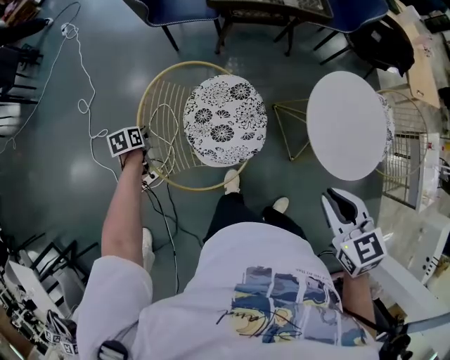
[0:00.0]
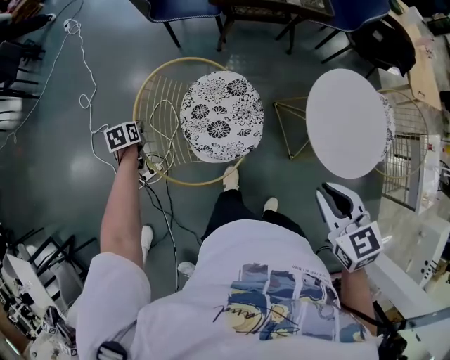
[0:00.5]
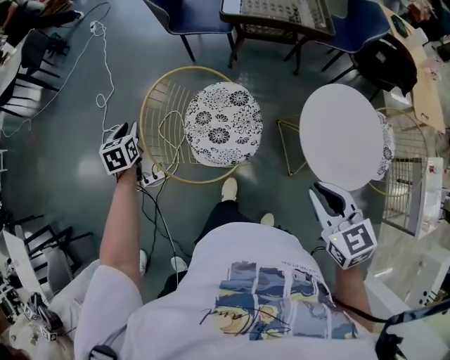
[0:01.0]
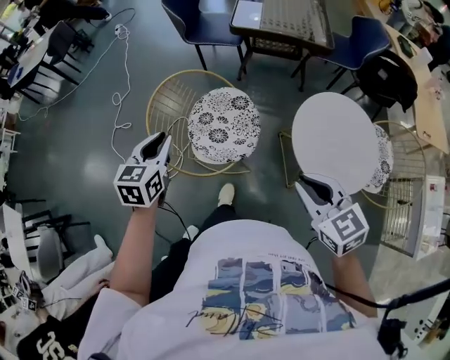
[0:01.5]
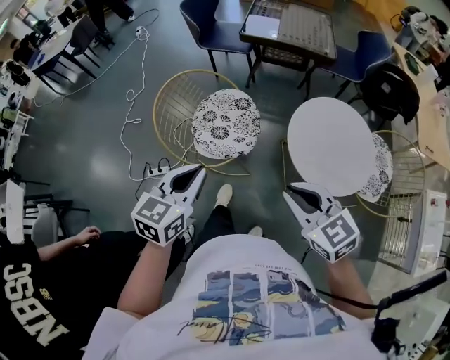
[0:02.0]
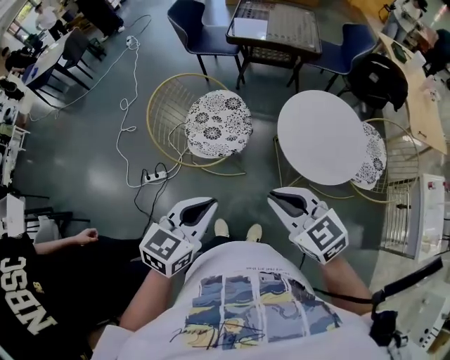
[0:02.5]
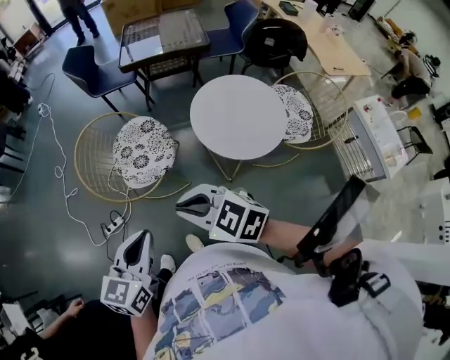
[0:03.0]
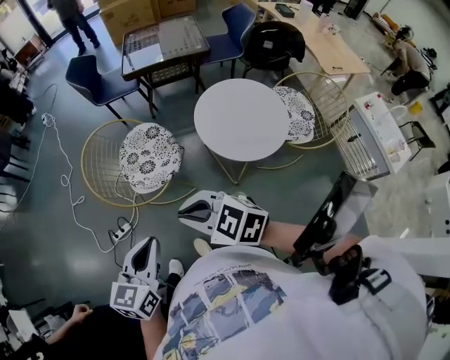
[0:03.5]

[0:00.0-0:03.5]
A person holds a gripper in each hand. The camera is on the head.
0:00.0 to 0:02.0: The left gripper travels backward, upward and to the right by about 60 cm, tips its fingers upward by roughly 40 degrees, and opens, then closes once more, while the right gripper shifts about 20 cm backward, and turns by approximately 40 degrees.
0:02.0 to 0:03.5: The right gripper goes approximately 10 cm to the left and backward, while the left gripper goes roughly 10 cm backward.

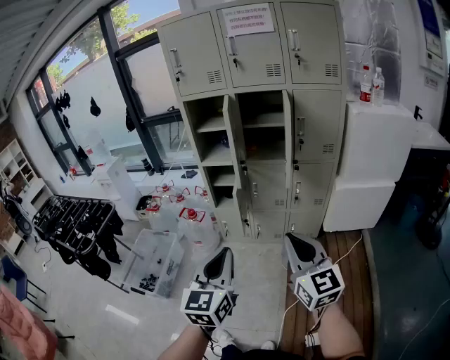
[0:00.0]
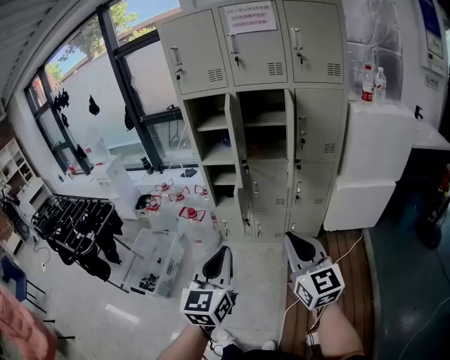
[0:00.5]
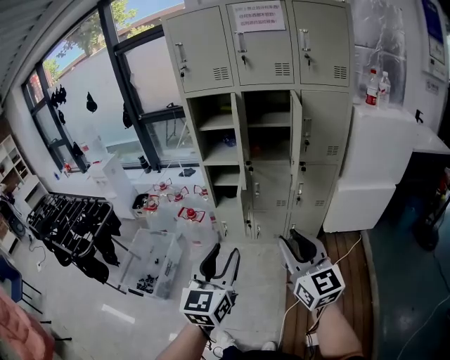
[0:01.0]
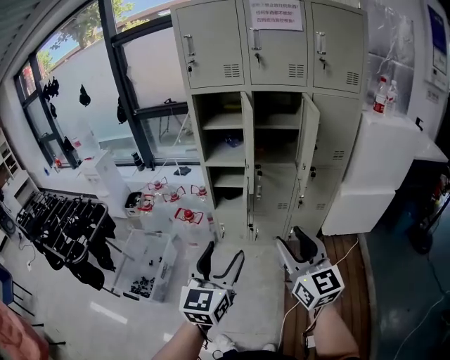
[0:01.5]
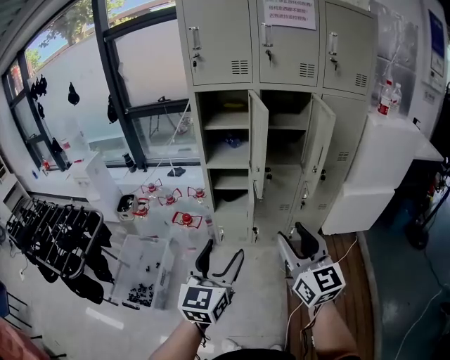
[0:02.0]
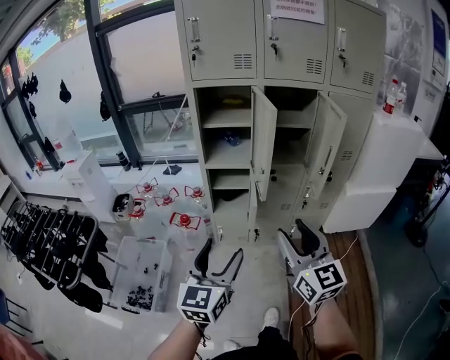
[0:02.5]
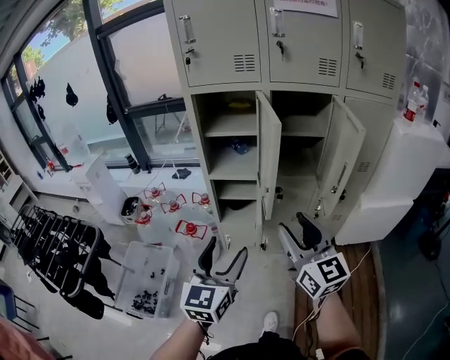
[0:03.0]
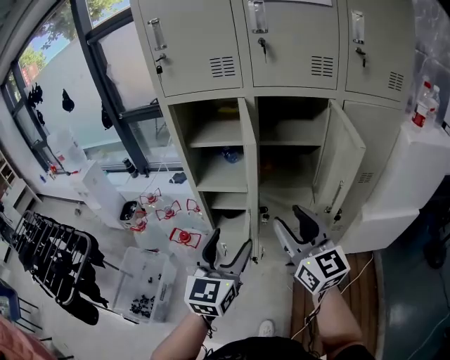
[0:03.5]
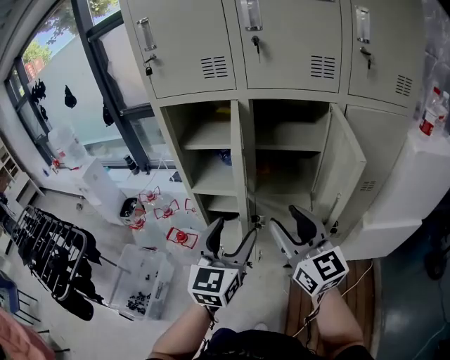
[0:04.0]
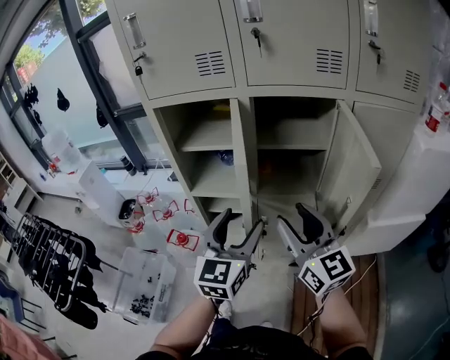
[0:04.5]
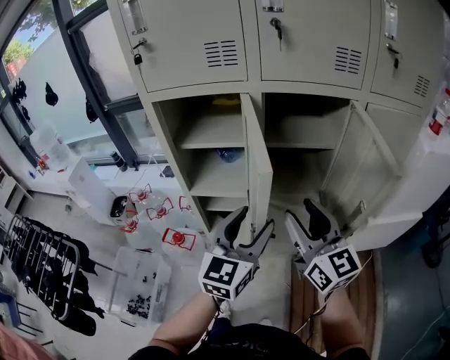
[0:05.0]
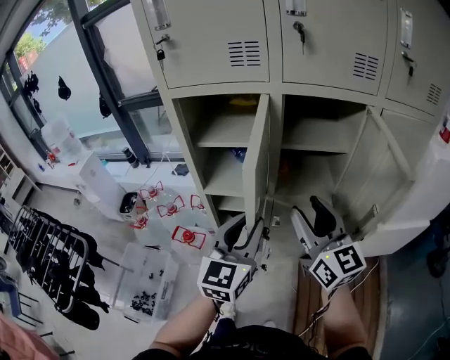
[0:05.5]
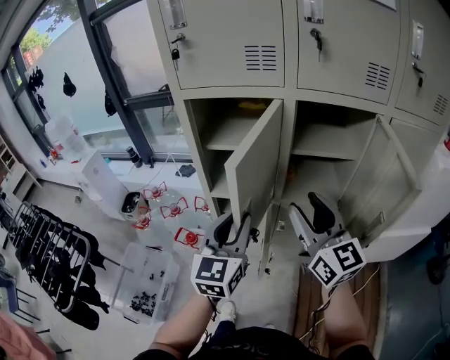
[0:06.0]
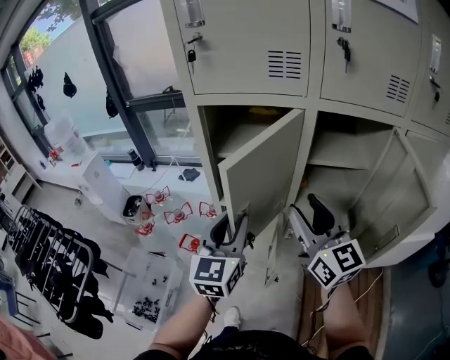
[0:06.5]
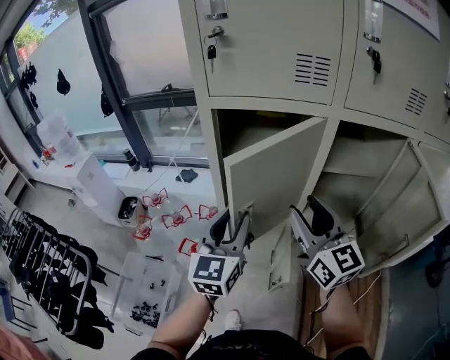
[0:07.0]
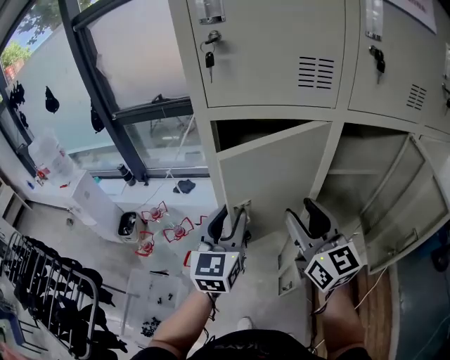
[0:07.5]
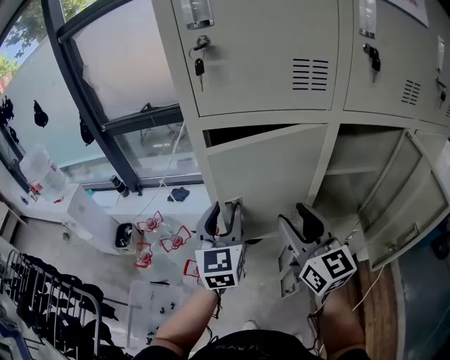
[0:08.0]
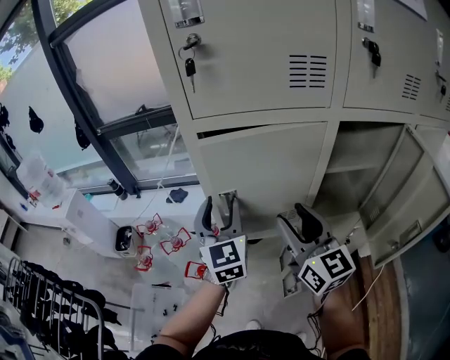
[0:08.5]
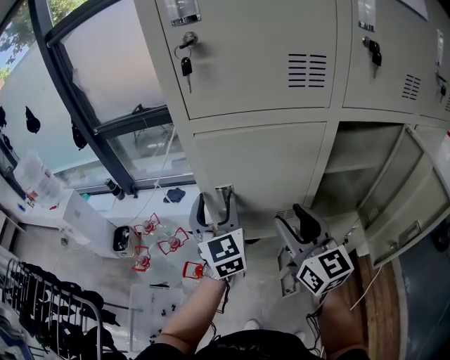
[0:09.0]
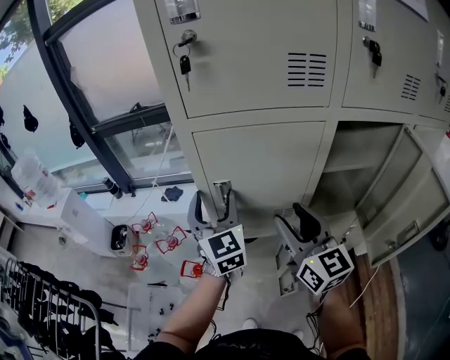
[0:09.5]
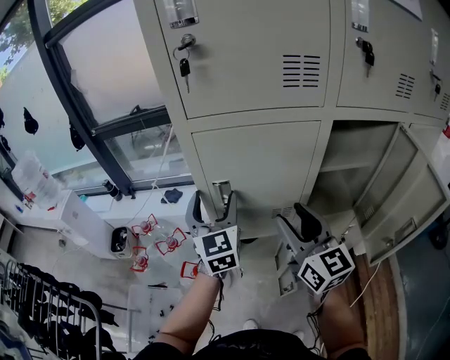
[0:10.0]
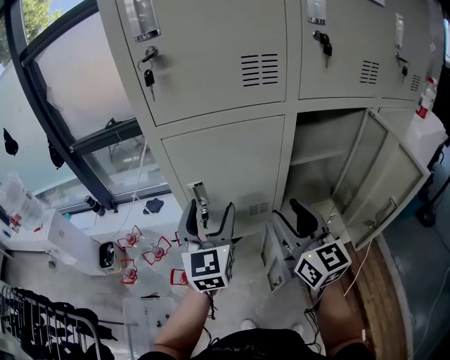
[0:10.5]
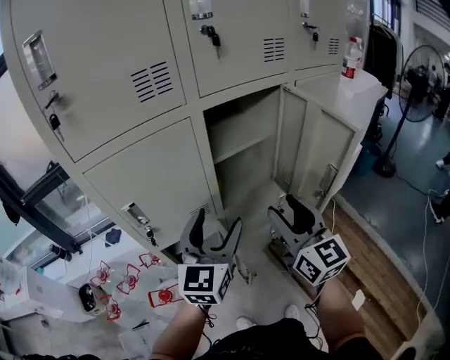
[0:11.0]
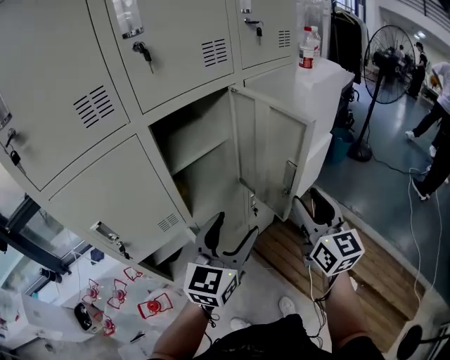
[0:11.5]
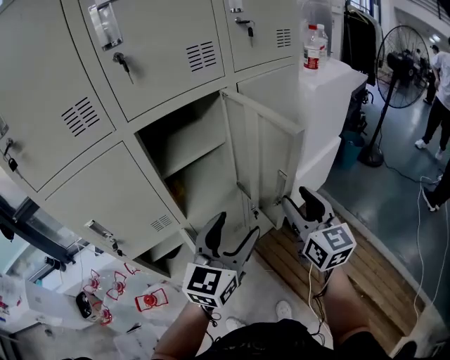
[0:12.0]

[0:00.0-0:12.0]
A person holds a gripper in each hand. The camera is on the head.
0:00.0 to 0:02.0: Both grippers move to the left and forward, about 20 cm. The left gripper opens its fingers, while the right gripper opens its fingers.
0:02.0 to 0:04.0: The right gripper shifts roughly 30 cm forward, while the left gripper is displaced forward and to the right by some 35 cm.
0:04.0 to 0:06.0: The right gripper travels forward and to the left by some 10 cm. The left gripper heads to the left and forward, covering approximately 15 cm, and closes up.
0:06.0 to 0:08.0: The right gripper shifts some 15 cm to the left and forward; the left gripper travels forward and to the left by about 20 cm.
0:08.0 to 0:10.0: The left gripper opens up.
0:10.0 to 0:12.0: The left gripper shifts by roughly 40 cm, and turns by roughly 60 degrees; the right gripper changes place by some 40 cm, and turns by roughly 40 degrees.

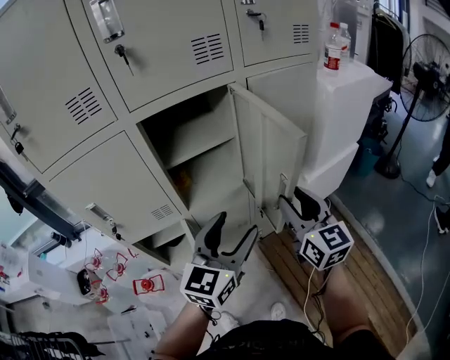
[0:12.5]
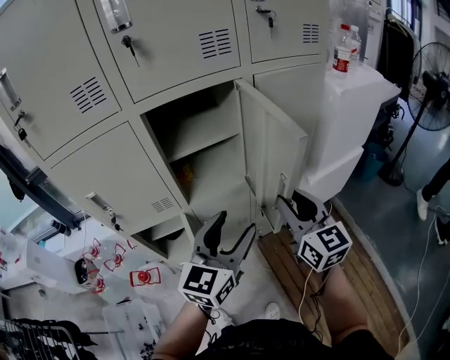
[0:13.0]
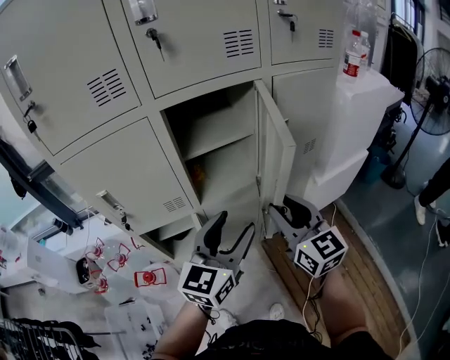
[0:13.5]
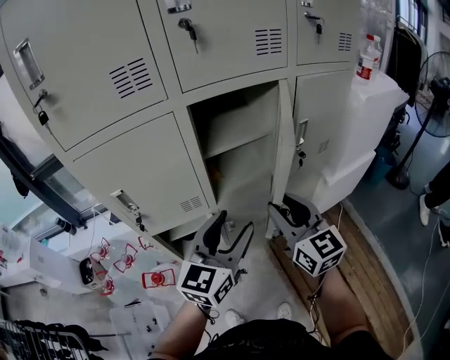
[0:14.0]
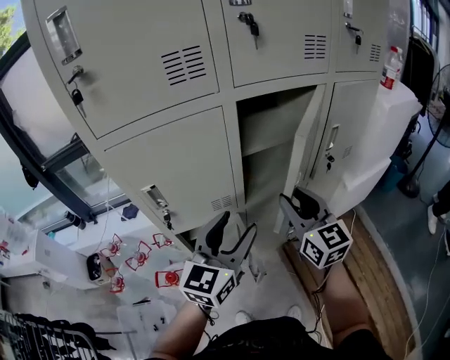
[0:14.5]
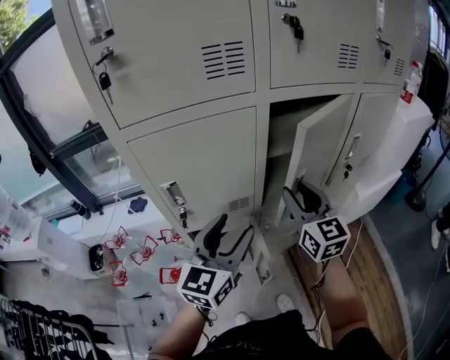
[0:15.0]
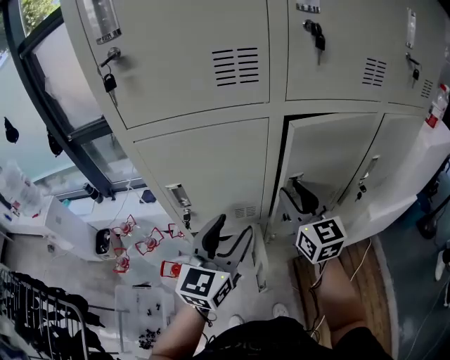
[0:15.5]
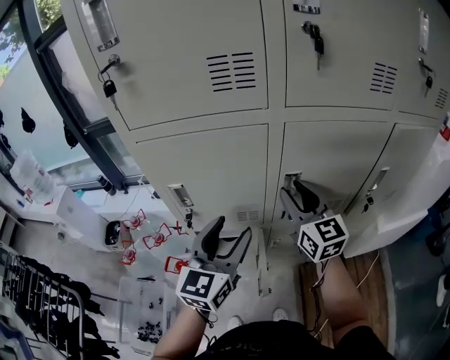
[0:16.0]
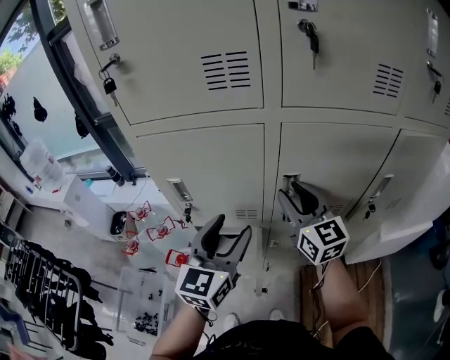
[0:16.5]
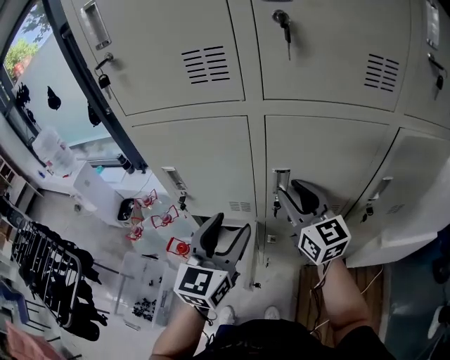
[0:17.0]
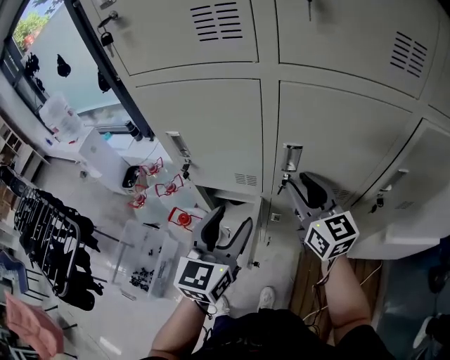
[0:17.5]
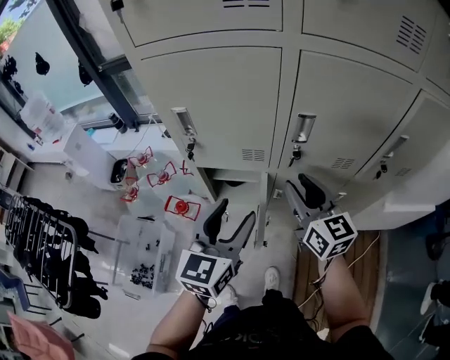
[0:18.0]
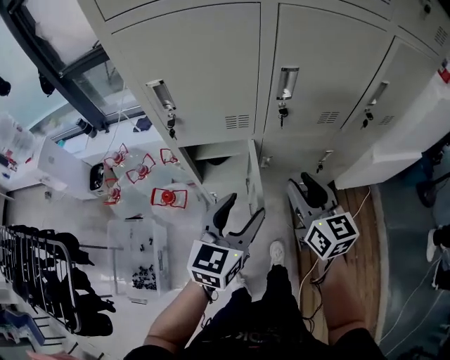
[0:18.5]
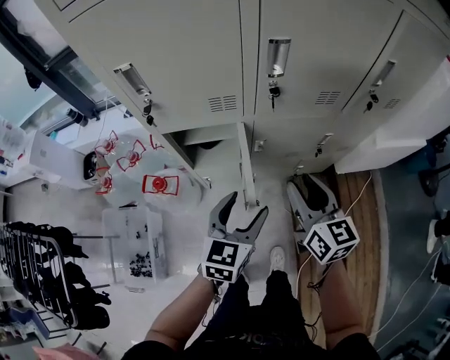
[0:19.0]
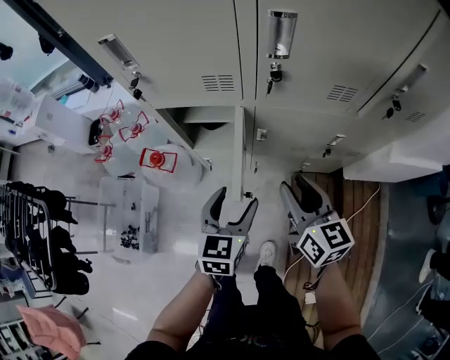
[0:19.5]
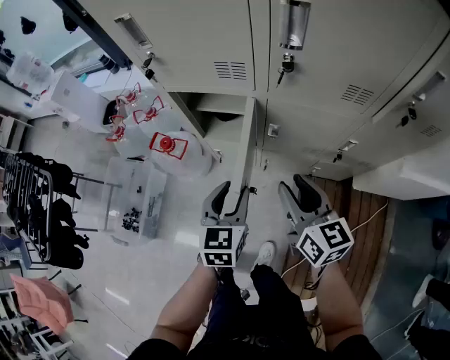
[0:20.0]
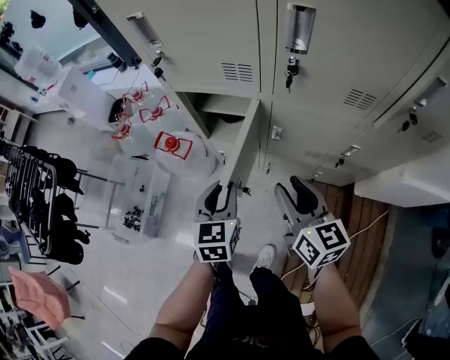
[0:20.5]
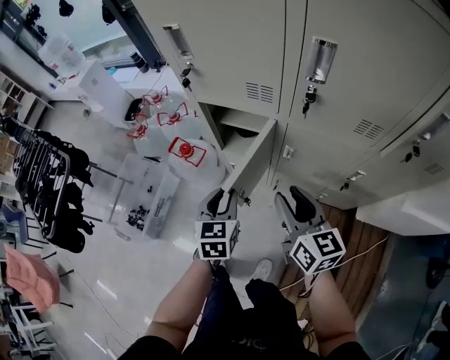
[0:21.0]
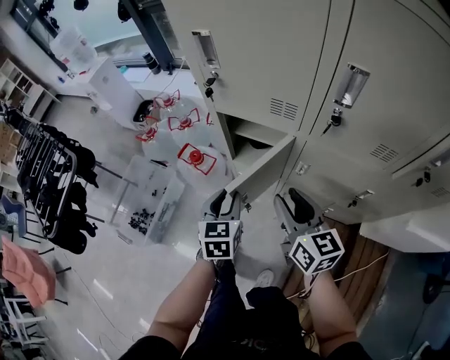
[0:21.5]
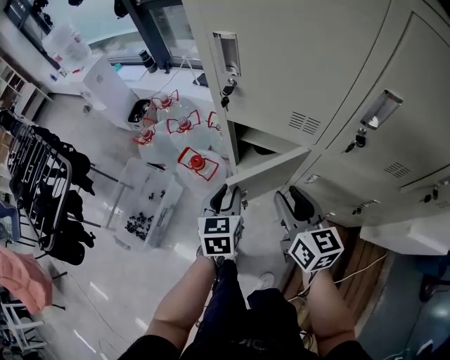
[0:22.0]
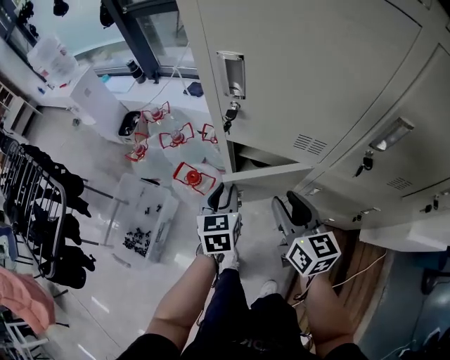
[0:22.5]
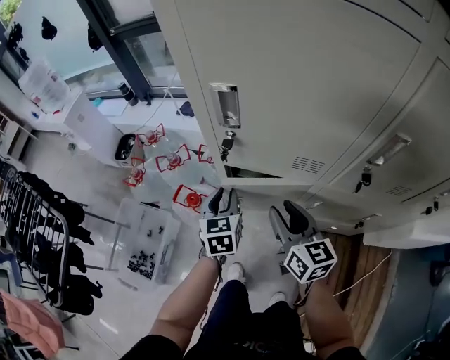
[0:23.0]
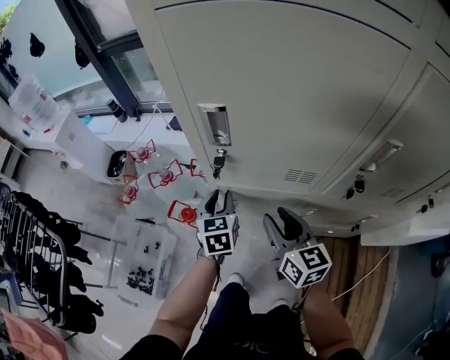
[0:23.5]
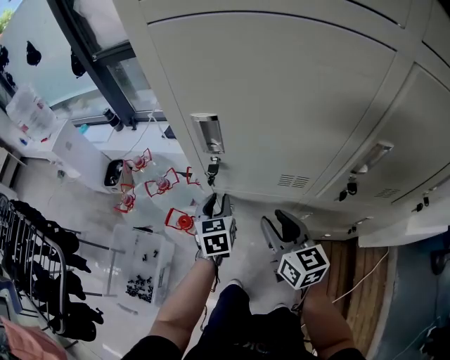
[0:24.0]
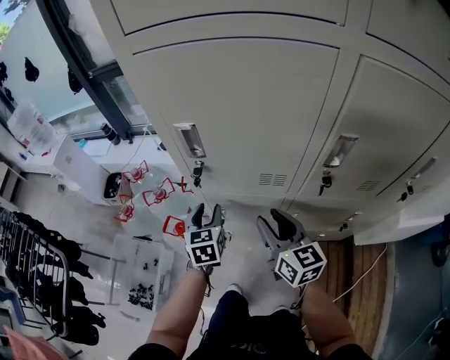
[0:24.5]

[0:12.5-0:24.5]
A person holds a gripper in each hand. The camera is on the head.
0:12.5 to 0:14.5: The grippers both shift to the left by approximately 20 cm.
0:14.5 to 0:16.5: The left gripper changes place by roughly 5 cm, and rotates about 30 degrees. The right gripper heads forward and to the left, covering about 15 cm, and rotates about 20 degrees.
0:16.5 to 0:18.5: The left gripper travels downward and backward by roughly 20 cm; the right gripper travels backward and downward by some 20 cm.
0:18.5 to 0:20.5: Both grippers move downward, approximately 15 cm. The left gripper swivels roughly 40 degrees, and closes its fingers. Meanwhile the right gripper rotates some 20 degrees.
0:20.5 to 0:22.5: The grippers both shift forward and to the left by some 20 cm.
0:22.5 to 0:24.5: The right gripper moves some 5 cm. Meanwhile the left gripper moves forward, about 5 cm.
